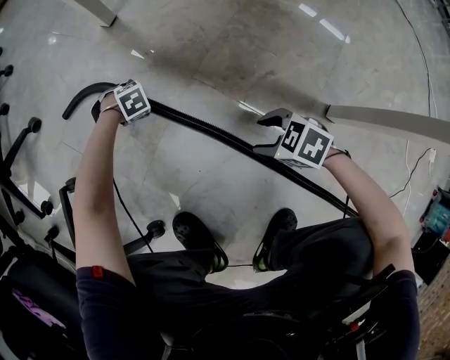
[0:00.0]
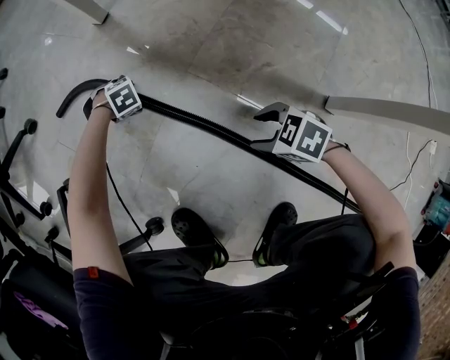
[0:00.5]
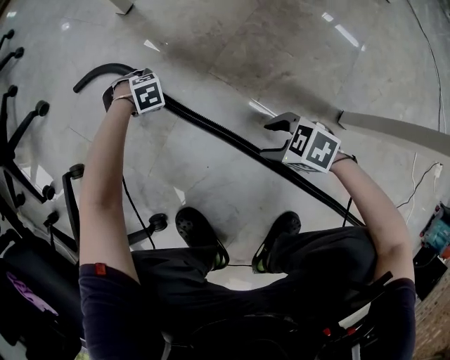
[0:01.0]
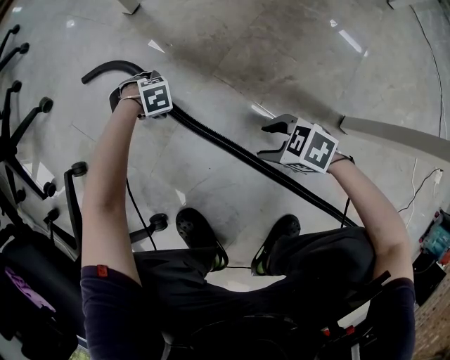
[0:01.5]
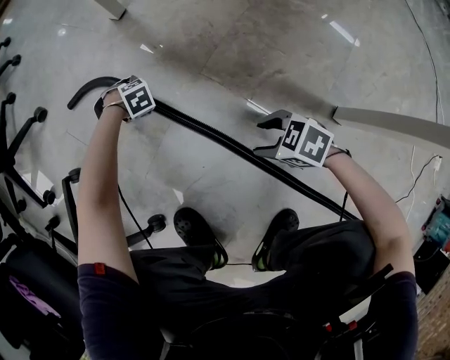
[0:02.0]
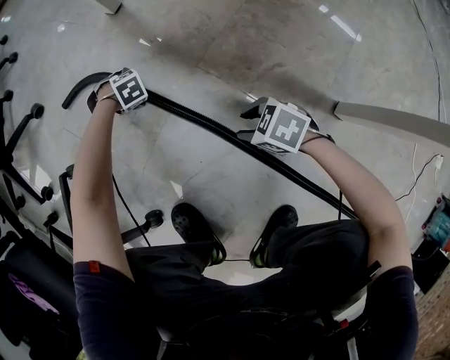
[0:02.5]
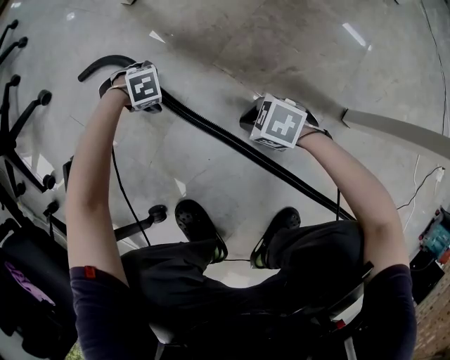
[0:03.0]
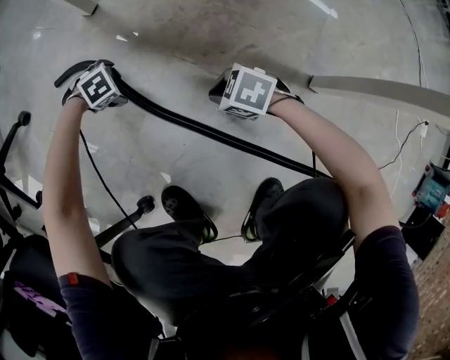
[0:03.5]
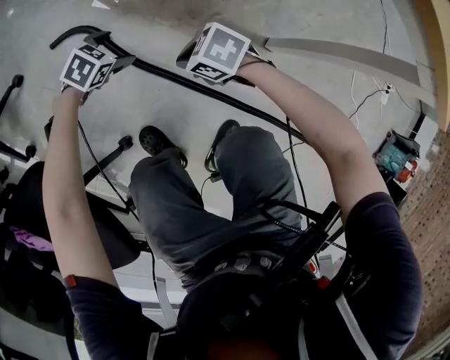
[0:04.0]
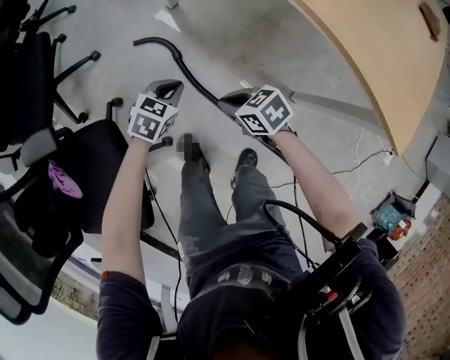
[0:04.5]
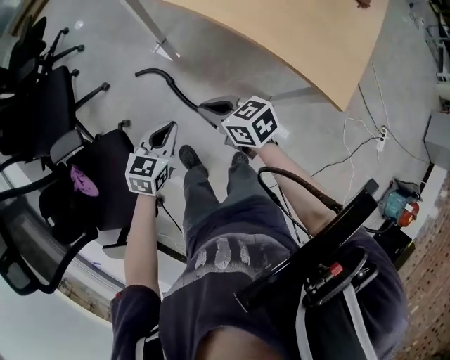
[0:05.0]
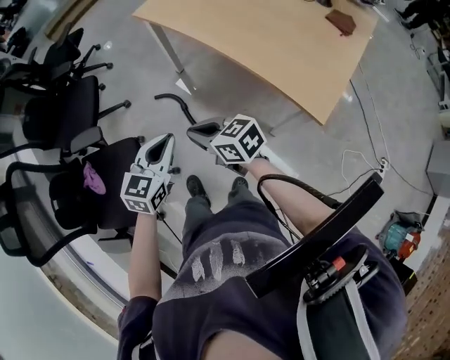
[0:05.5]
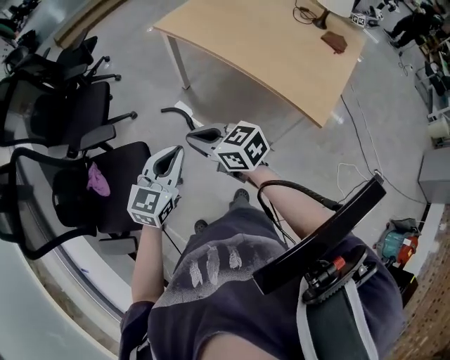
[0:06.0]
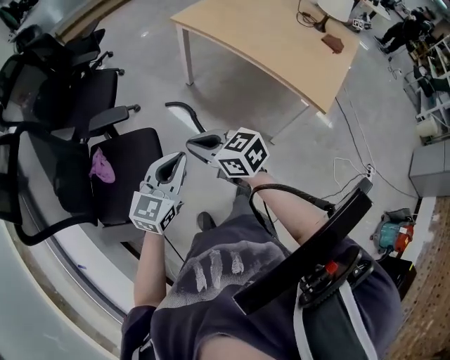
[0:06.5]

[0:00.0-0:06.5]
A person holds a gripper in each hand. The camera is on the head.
0:00.0 to 0:02.0: The grippers move only a little.
0:02.0 to 0:04.5: Both grippers travel together upward, approximately 50 cm. The right gripper closes up; the left gripper points its fingers approximately 40 degrees further upward, and closes its fingers.
0:04.5 to 0:06.5: The grippers both shift upward by roughly 50 cm. The right gripper turns by approximately 30 degrees; the left gripper points its fingers roughly 40 degrees further upward.

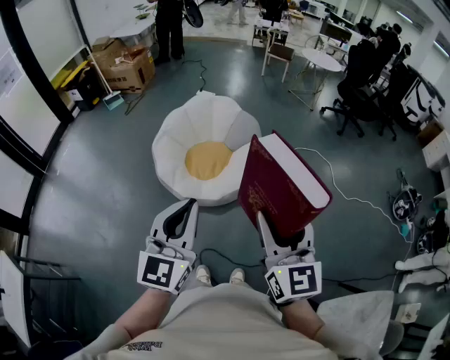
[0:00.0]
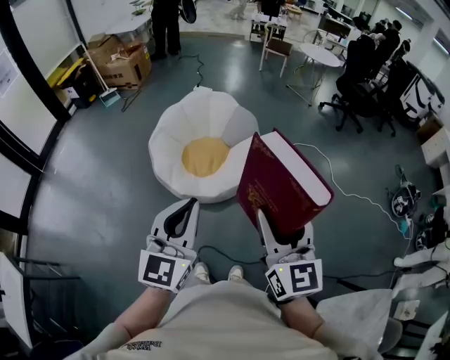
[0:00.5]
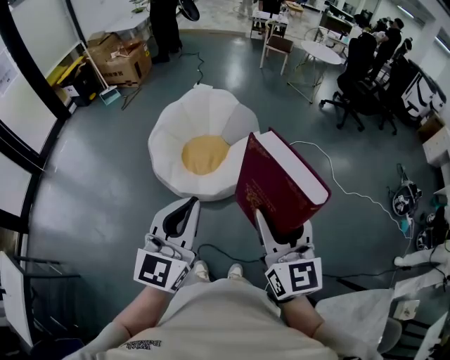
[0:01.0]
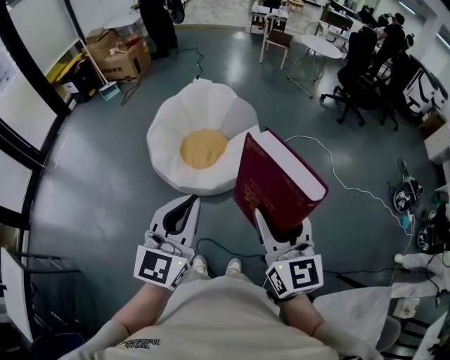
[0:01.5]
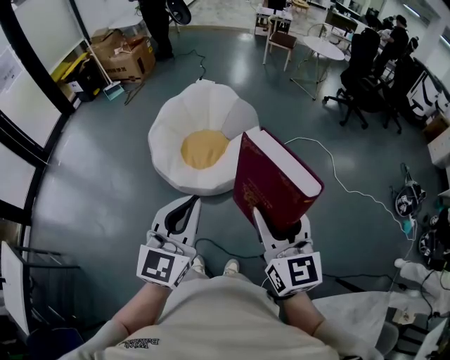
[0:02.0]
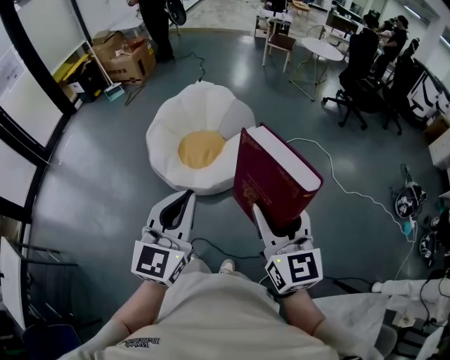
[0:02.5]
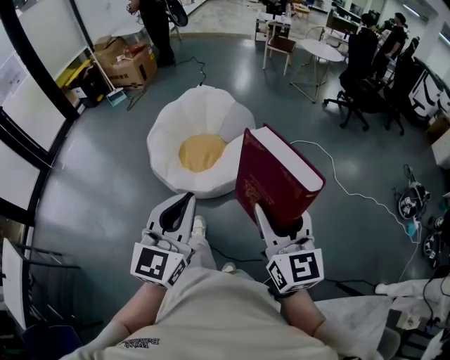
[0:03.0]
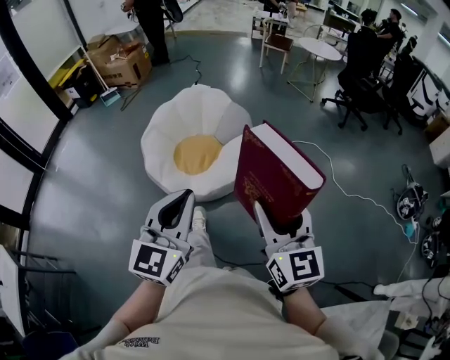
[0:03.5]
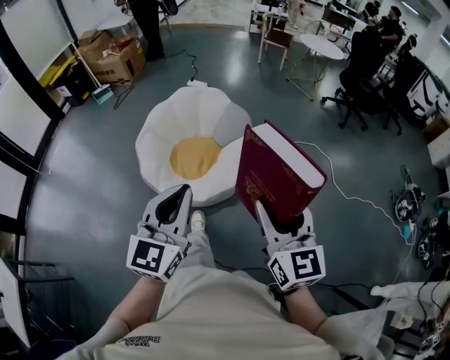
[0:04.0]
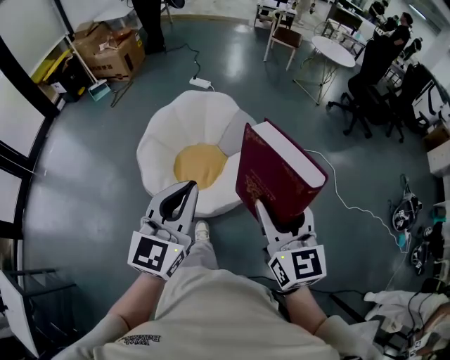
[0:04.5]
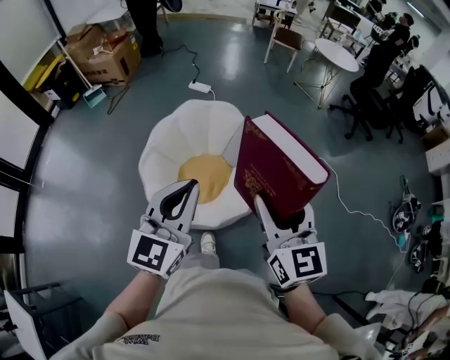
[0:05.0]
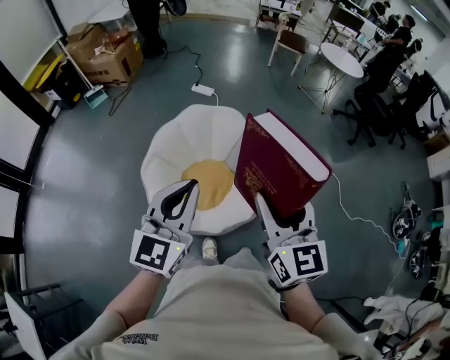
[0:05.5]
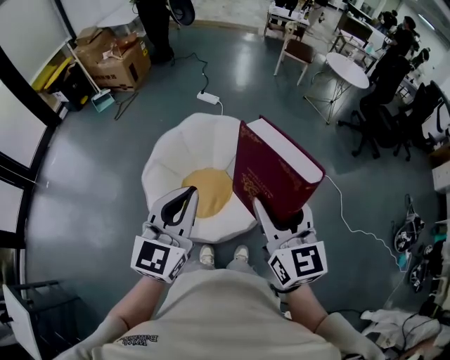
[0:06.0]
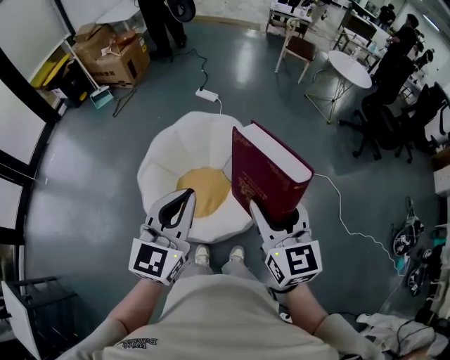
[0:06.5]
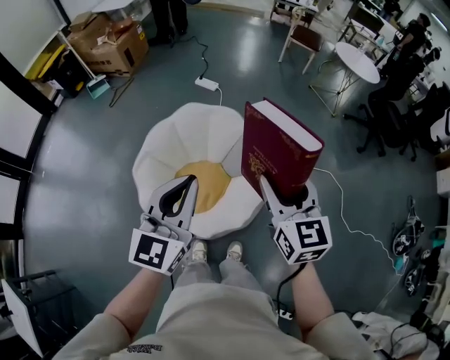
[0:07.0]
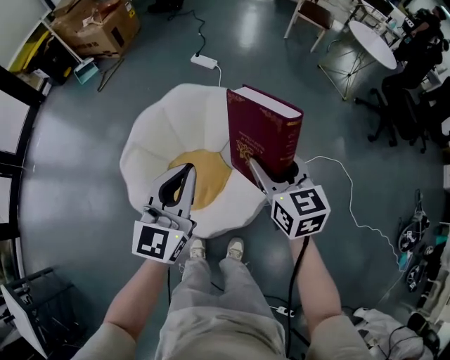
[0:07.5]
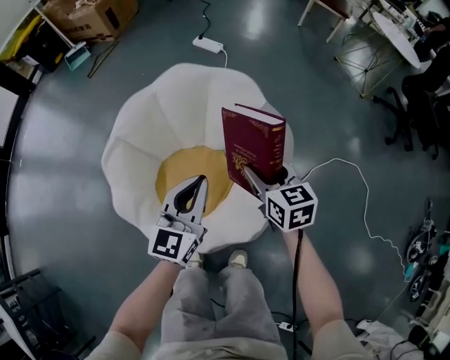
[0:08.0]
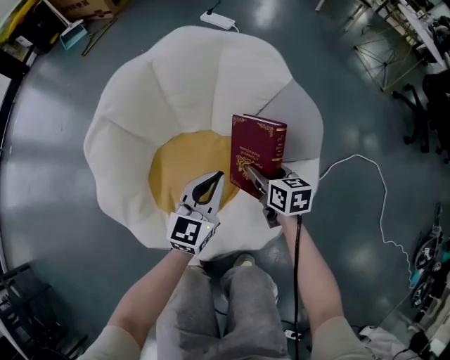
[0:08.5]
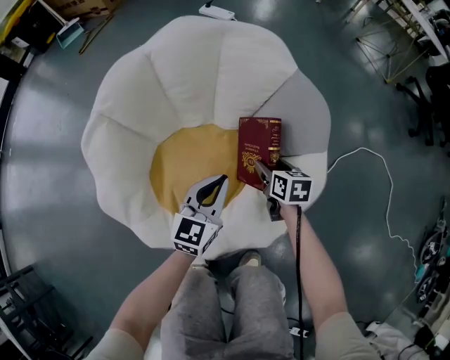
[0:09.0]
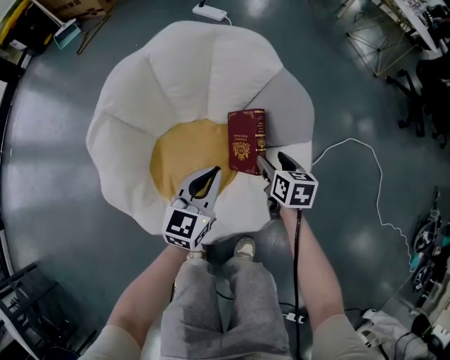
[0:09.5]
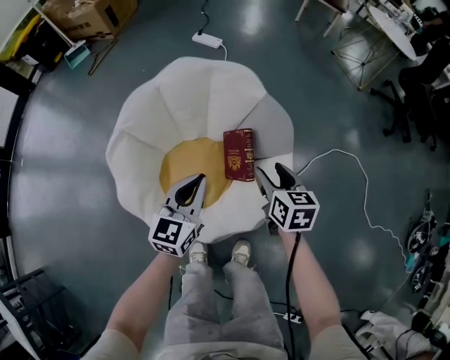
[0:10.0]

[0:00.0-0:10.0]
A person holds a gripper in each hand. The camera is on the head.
0:00.0 to 0:02.0: The two grippers go about 5 cm to the right.
0:02.0 to 0:04.0: Both grippers move forward, about 15 cm.
0:04.0 to 0:06.0: The grippers both shift forward and to the left by roughly 35 cm.
0:06.0 to 0:08.0: The grippers both shift downward and forward by some 60 cm. The right gripper turns by about 30 degrees.
0:08.0 to 0:10.0: The right gripper goes about 5 cm backward, and reaches some 35 cm downward, then returns, while the left gripper travels downward and back again, about 25 cm each way.

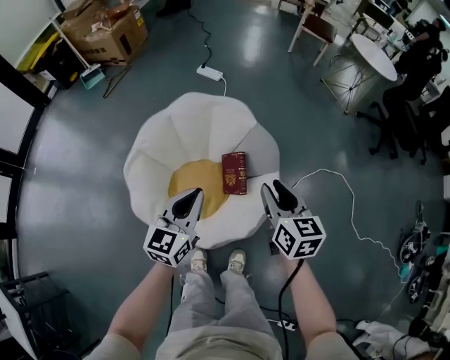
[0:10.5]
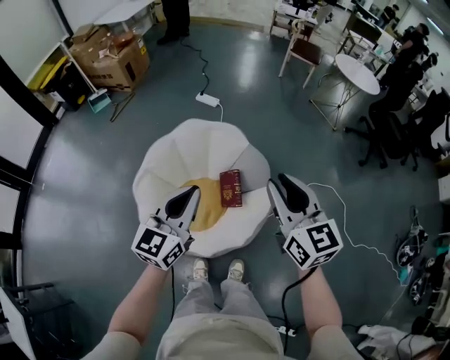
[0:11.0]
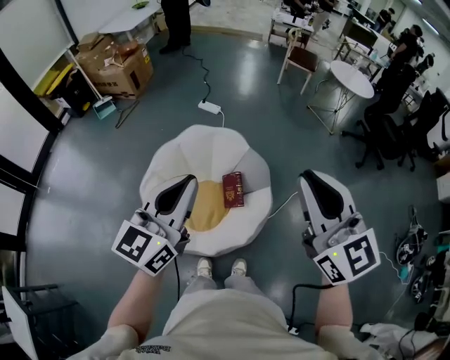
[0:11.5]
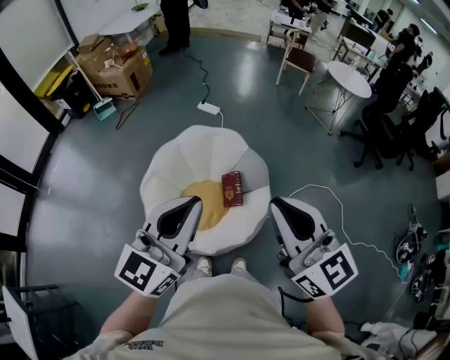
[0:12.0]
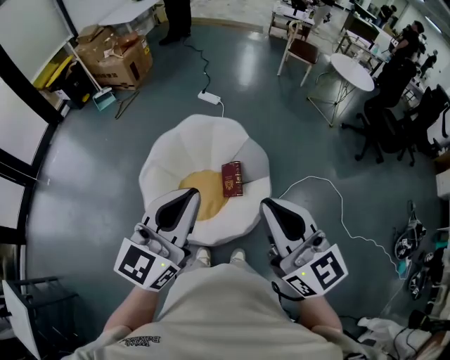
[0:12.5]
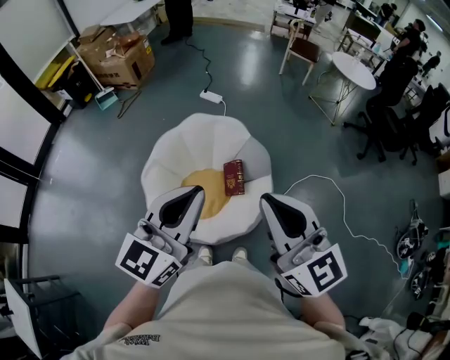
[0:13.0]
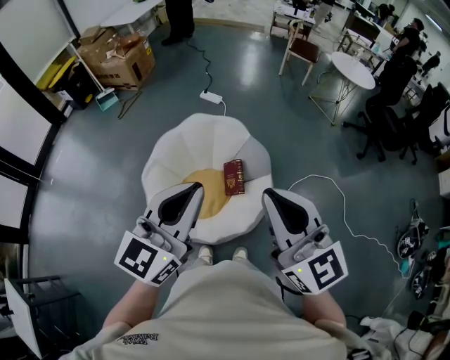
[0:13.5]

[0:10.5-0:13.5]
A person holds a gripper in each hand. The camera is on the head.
0:10.5 to 0:12.0: The right gripper is displaced upward and backward by some 40 cm, swivels roughly 30 degrees, and closes its fingers. The left gripper travels upward by approximately 35 cm.
0:12.0 to 0:13.5: There are only small adjustments of the grippers.

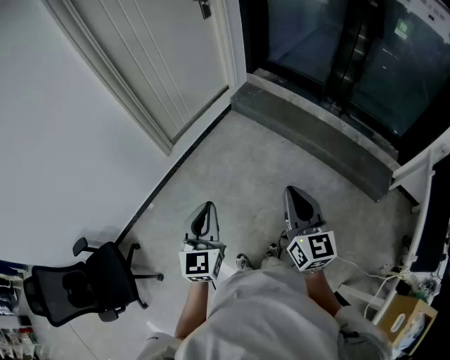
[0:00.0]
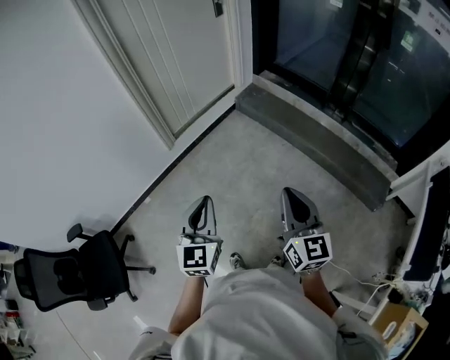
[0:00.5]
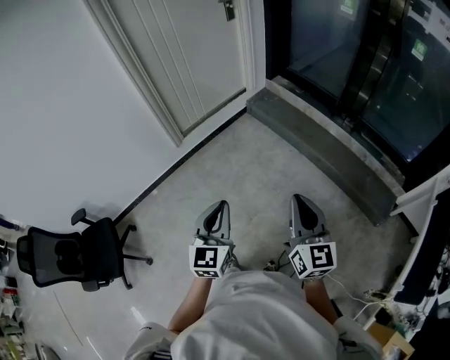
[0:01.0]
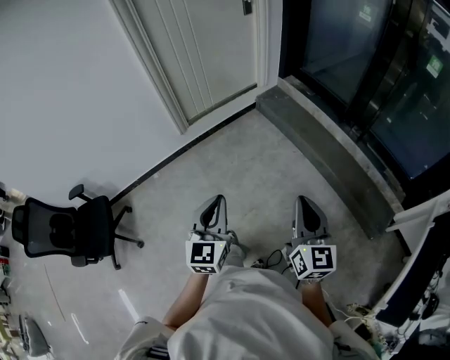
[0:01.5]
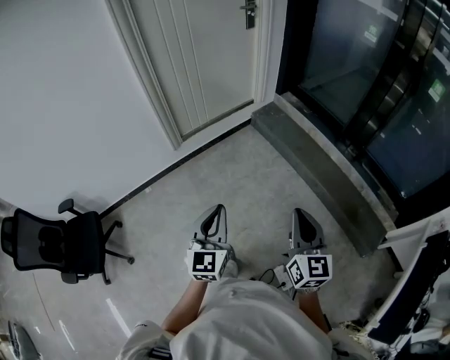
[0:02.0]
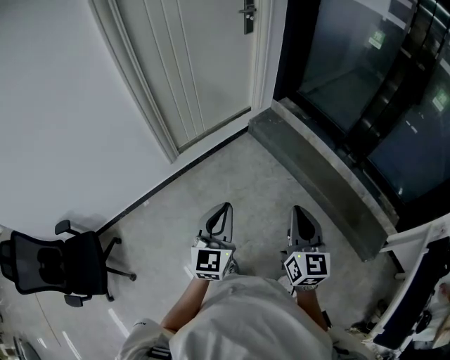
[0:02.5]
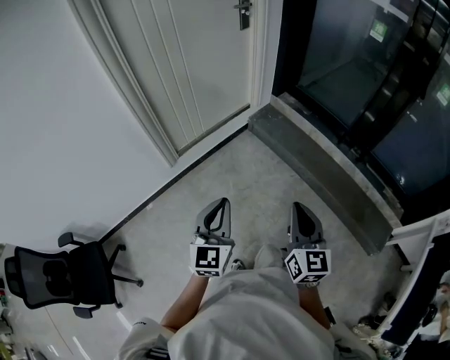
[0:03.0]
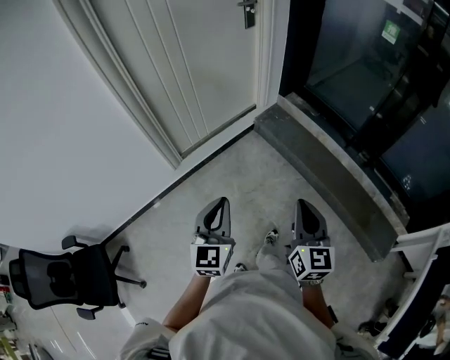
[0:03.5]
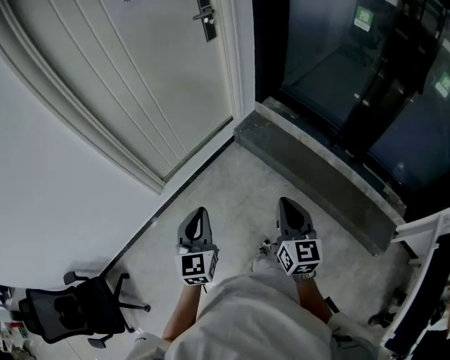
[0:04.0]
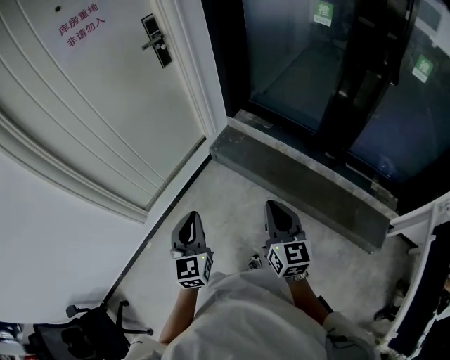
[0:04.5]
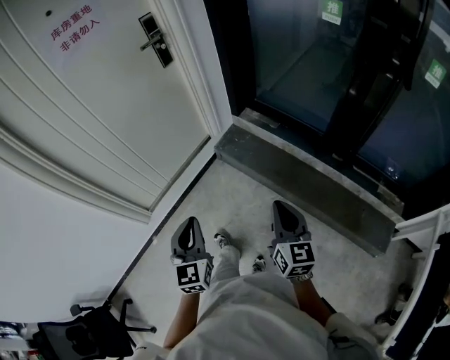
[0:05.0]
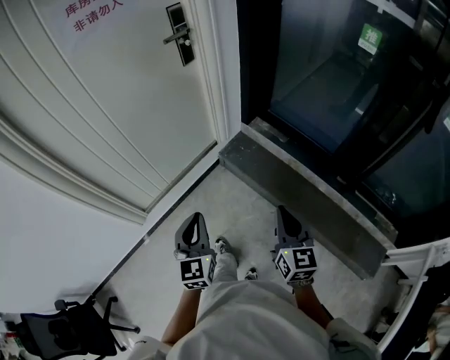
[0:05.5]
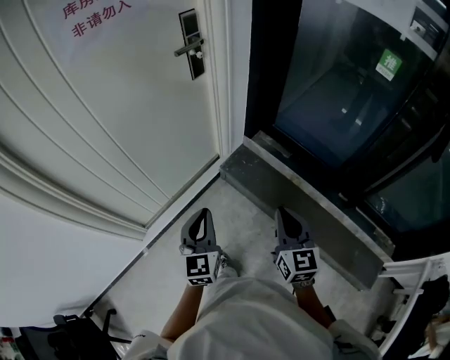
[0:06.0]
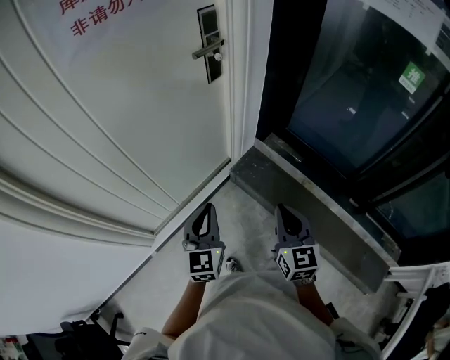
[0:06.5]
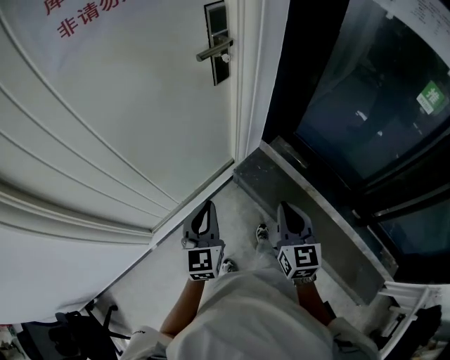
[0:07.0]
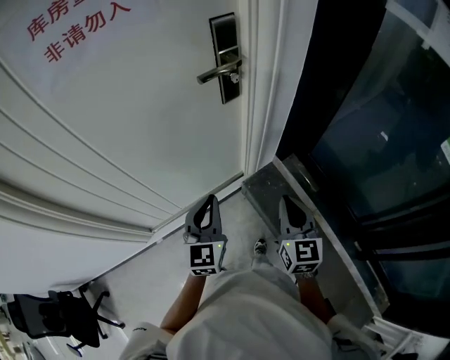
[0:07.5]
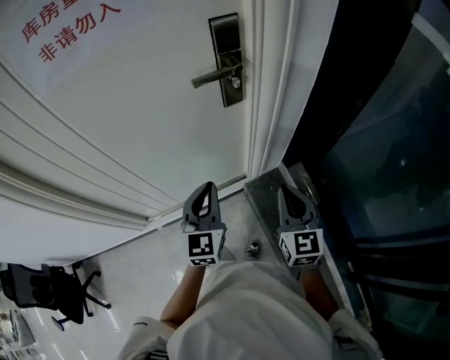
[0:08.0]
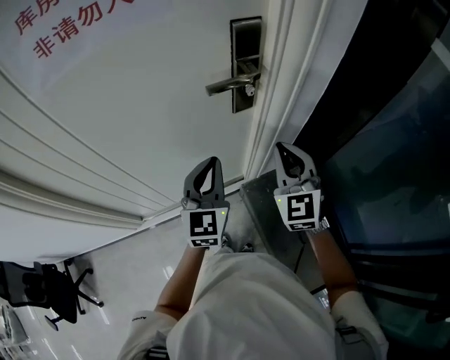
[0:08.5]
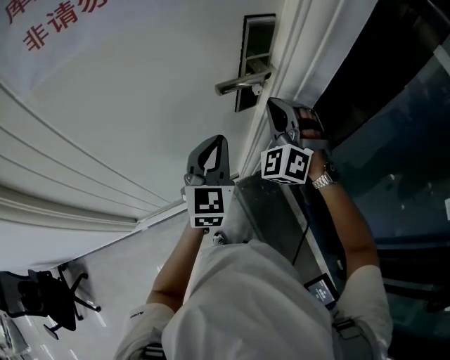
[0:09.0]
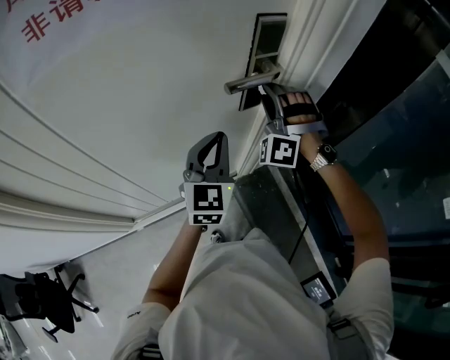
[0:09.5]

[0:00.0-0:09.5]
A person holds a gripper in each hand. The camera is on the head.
0:00.0 to 0:02.0: The grippers both shift to the right by some 10 cm.
0:02.0 to 0:04.0: The grippers both shift forward by roughly 35 cm.
0:04.0 to 0:05.5: The left gripper goes about 20 cm forward. The right gripper heads forward and to the right, covering about 20 cm.
0:05.5 to 0:07.5: Both grippers travel together forward, about 40 cm.
0:07.5 to 0:09.5: The right gripper goes approximately 35 cm forward, rolls counterclockwise, seen from behind, by approximately 100 degrees, and opens up; the left gripper goes roughly 20 cm forward.
